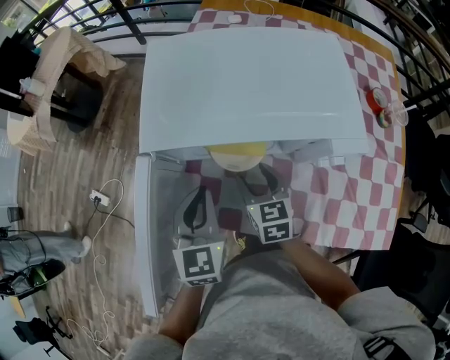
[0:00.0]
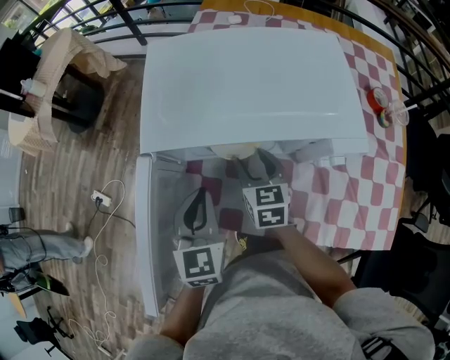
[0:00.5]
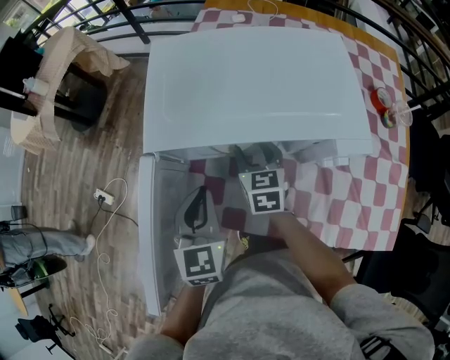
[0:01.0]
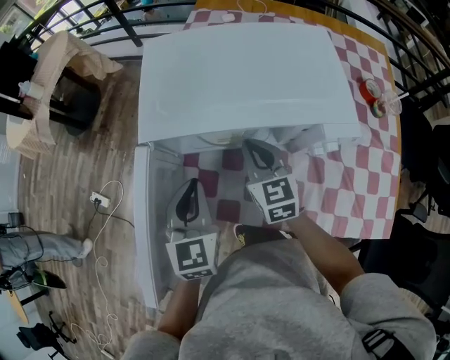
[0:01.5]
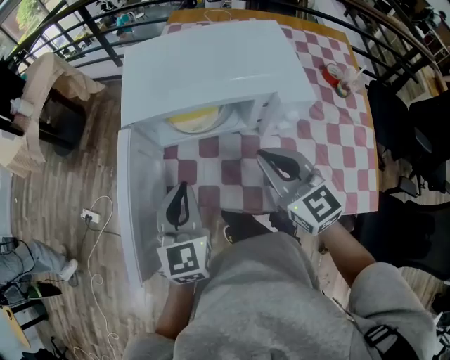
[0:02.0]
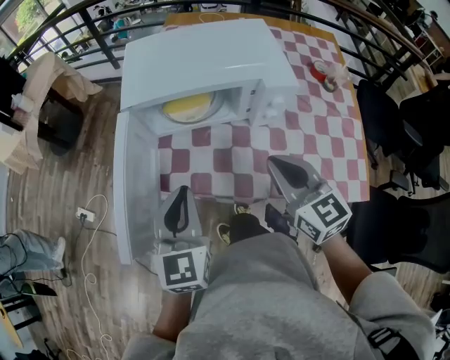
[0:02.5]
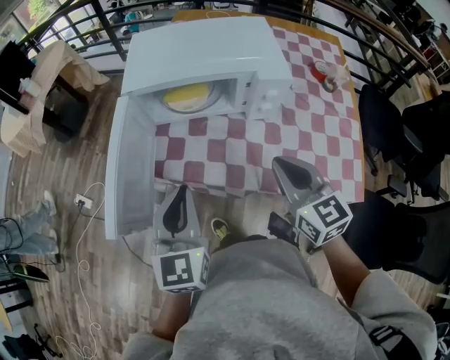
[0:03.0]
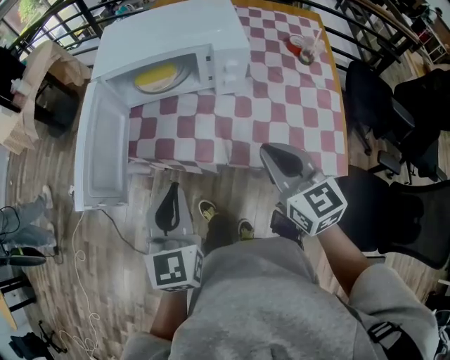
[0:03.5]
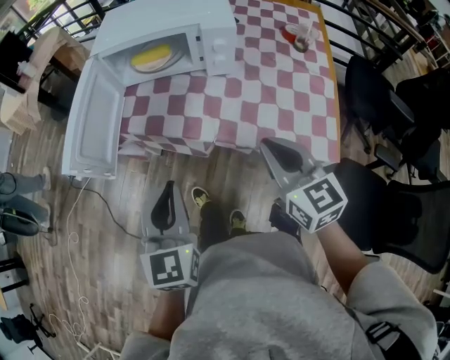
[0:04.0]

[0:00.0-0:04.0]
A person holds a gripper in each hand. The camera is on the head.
0:00.0 to 0:02.0: The left gripper goes approximately 10 cm backward. Meanwhile the right gripper moves upward and backward, roughly 20 cm, changes its angle by some 30 degrees, and closes up.
0:02.0 to 0:04.0: The left gripper goes roughly 30 cm backward. Meanwhile the right gripper moves backward and to the right, approximately 30 cm.

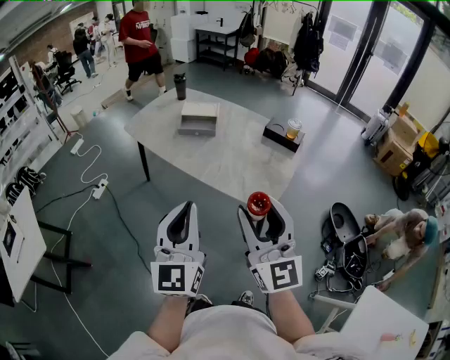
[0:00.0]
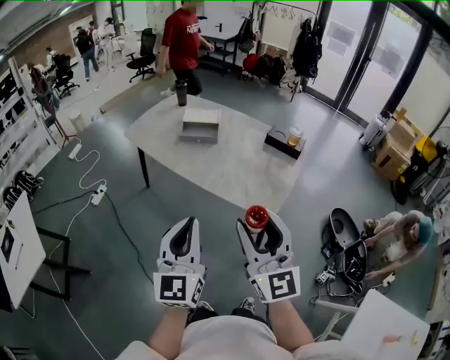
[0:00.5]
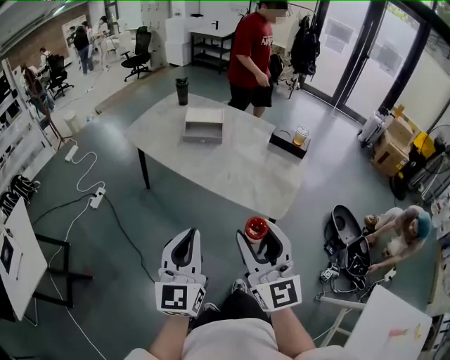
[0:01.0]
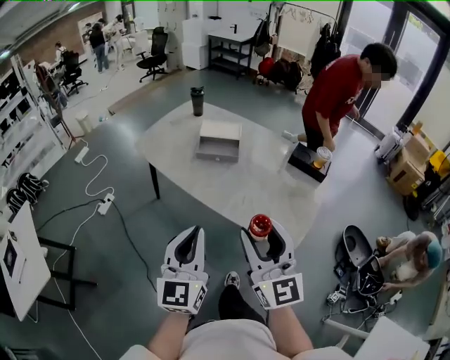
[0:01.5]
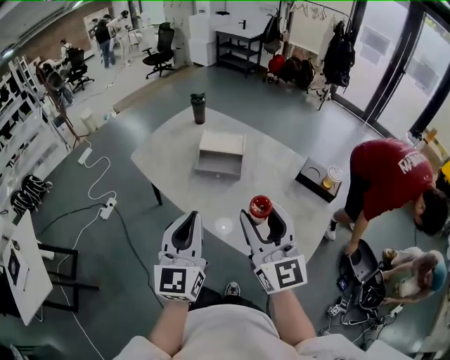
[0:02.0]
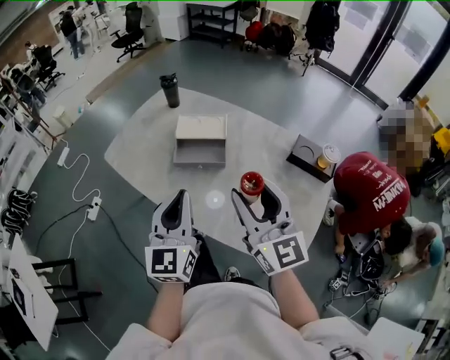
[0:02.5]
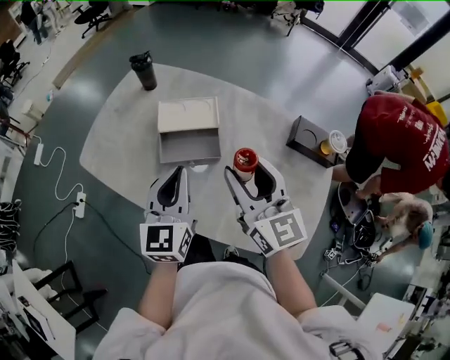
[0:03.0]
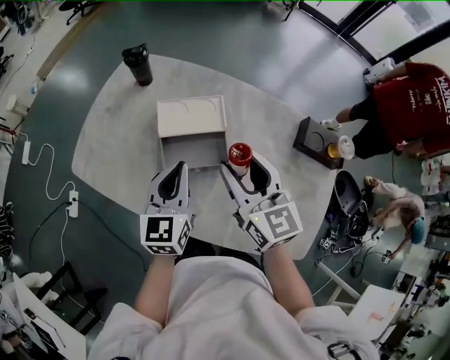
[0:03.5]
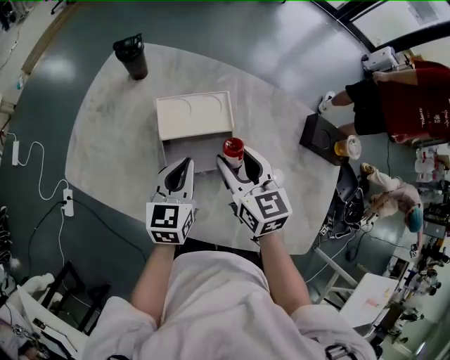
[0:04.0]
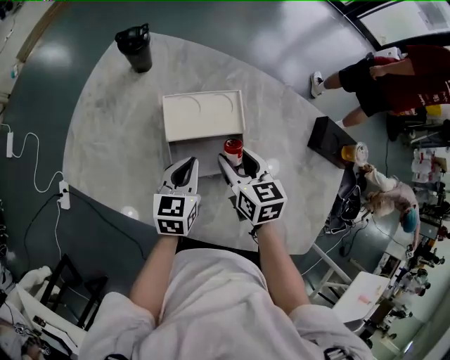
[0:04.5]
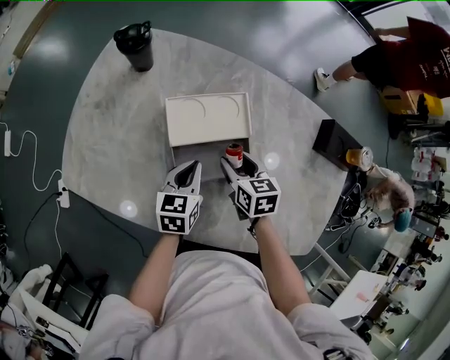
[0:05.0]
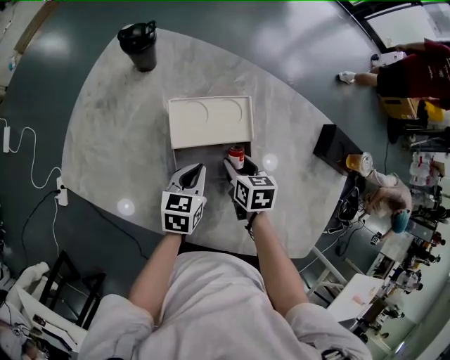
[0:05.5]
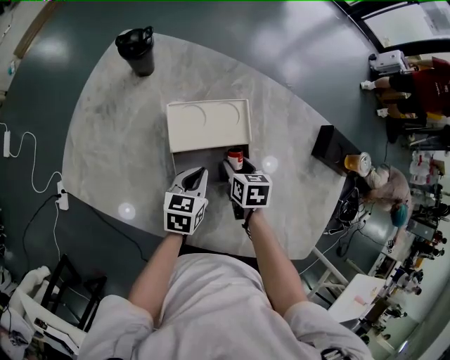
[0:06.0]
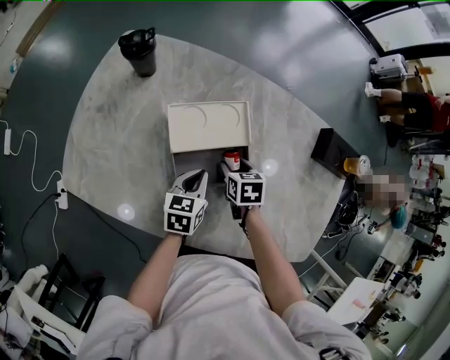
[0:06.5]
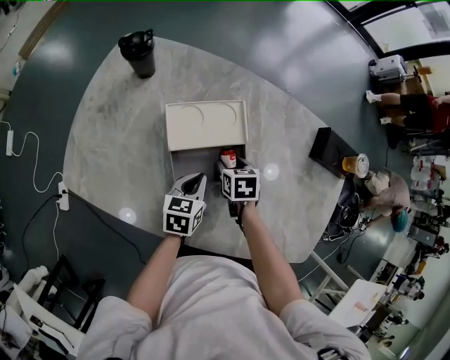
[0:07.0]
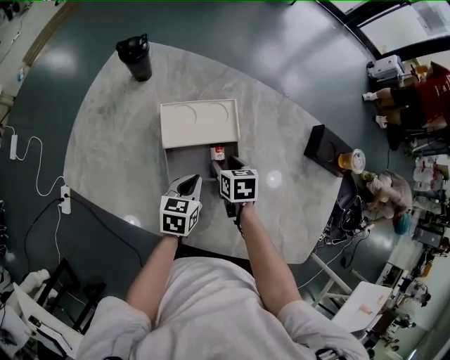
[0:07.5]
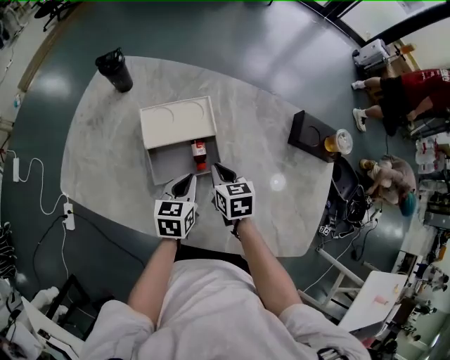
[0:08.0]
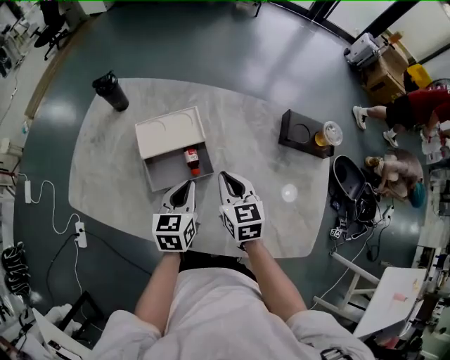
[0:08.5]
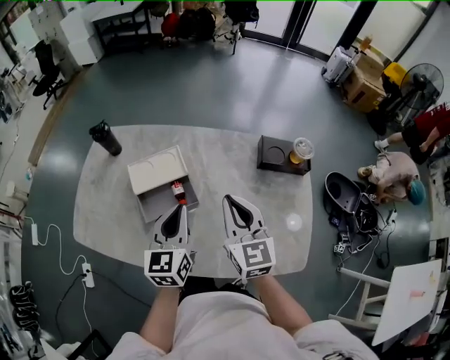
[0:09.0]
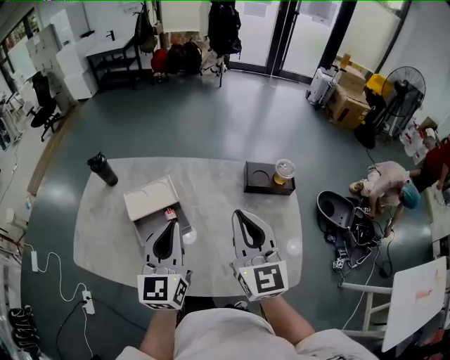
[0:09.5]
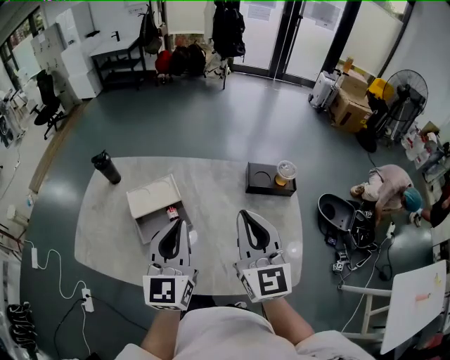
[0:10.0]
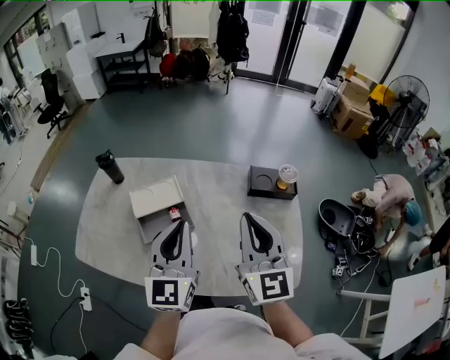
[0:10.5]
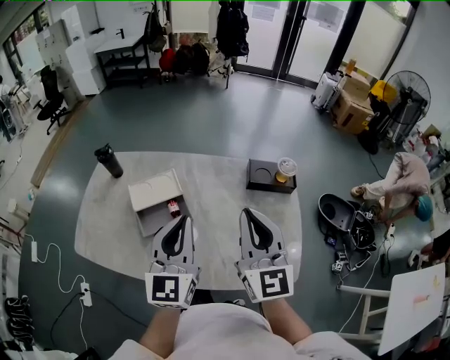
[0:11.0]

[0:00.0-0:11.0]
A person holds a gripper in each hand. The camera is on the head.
0:00.0 to 0:02.0: Both grippers travel together forward, approximately 35 cm.
0:02.0 to 0:03.5: Both grippers travel together forward and downward, about 40 cm. The left gripper turns by about 30 degrees; the right gripper swivels approximately 30 degrees.
0:03.5 to 0:05.5: The grippers both shift downward by approximately 25 cm. The right gripper angles its fingers downward, by approximately 40 degrees, while the left gripper changes its angle by approximately 30 degrees.
0:05.5 to 0:07.5: There are only small adjustments of the grippers.
0:07.5 to 0:09.0: Both grippers move upward and to the right, approximately 30 cm. The left gripper rotates about 30 degrees. Meanwhile the right gripper points its fingers roughly 50 degrees further upward, and closes.
0:09.0 to 0:11.0: Both grippers travel together upward, backward and to the right, approximately 15 cm.

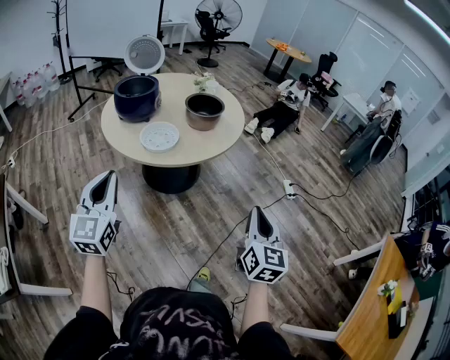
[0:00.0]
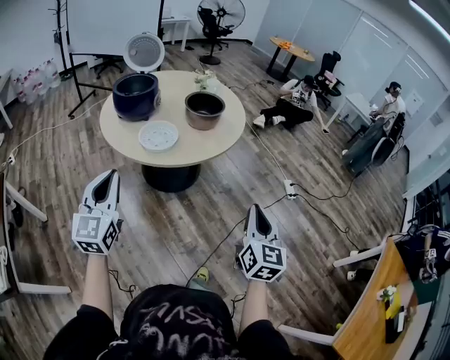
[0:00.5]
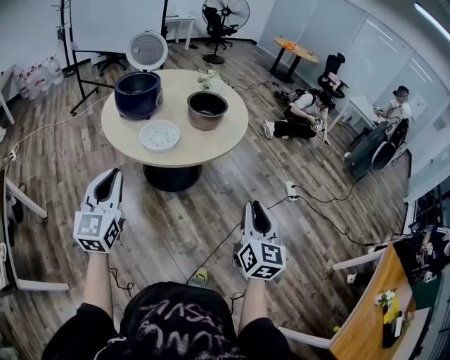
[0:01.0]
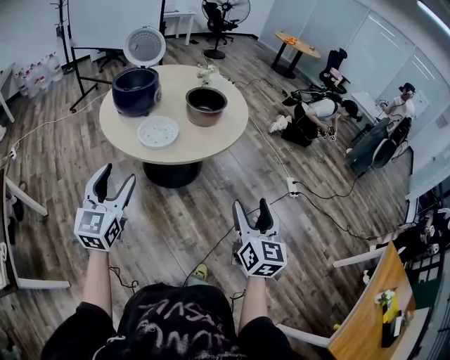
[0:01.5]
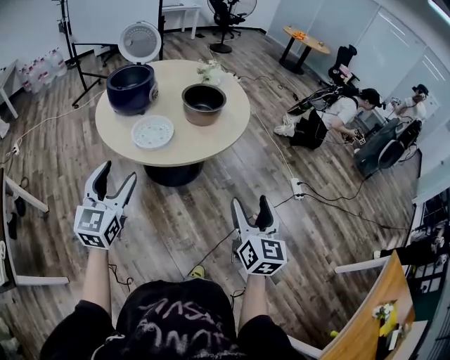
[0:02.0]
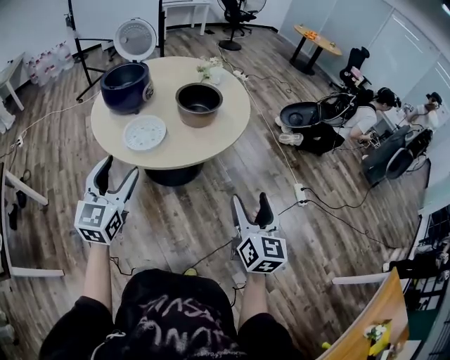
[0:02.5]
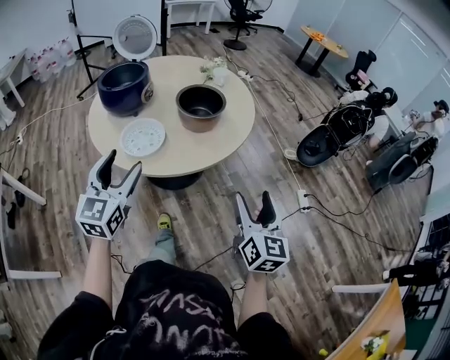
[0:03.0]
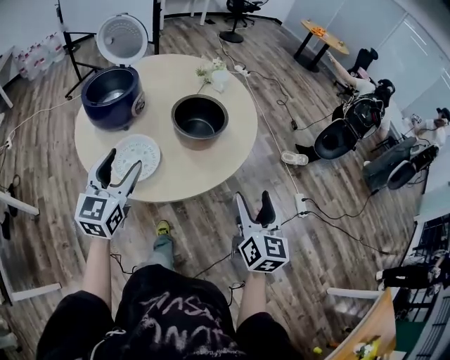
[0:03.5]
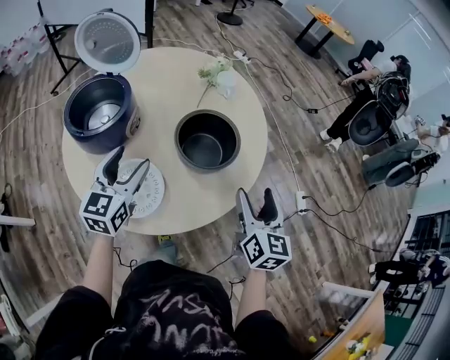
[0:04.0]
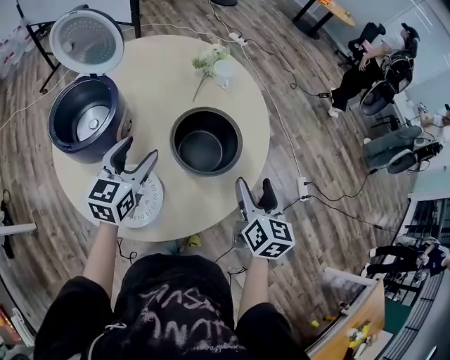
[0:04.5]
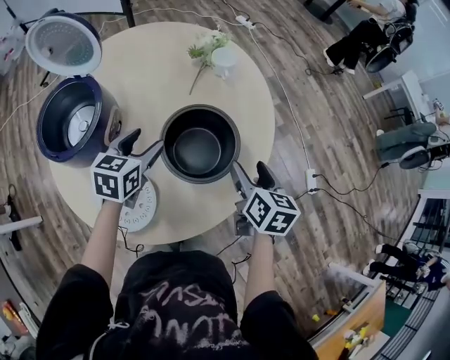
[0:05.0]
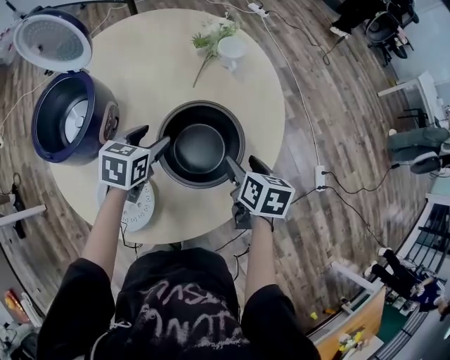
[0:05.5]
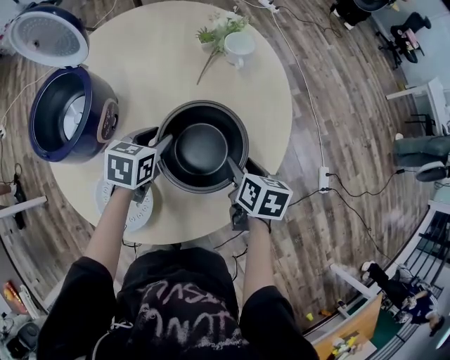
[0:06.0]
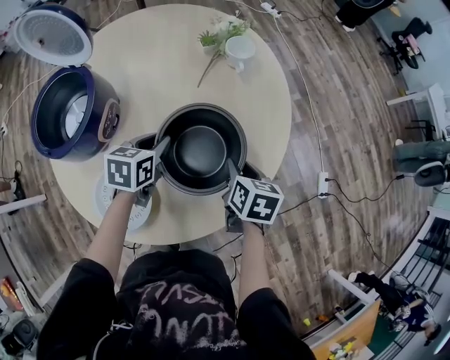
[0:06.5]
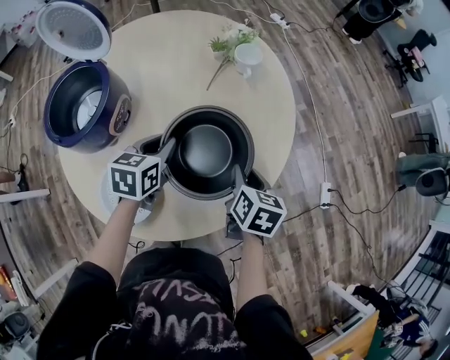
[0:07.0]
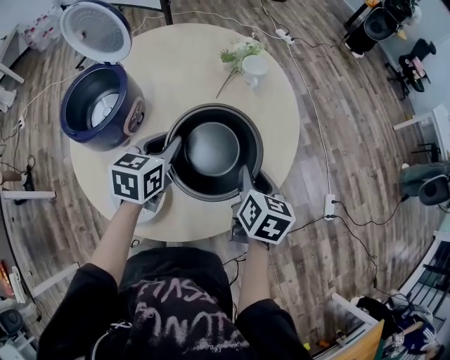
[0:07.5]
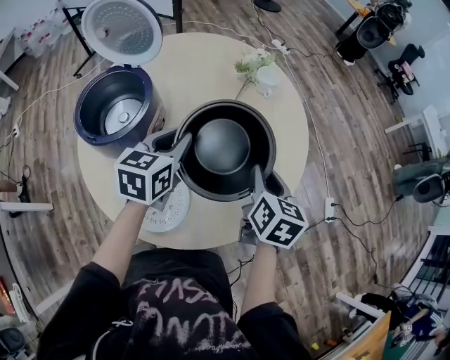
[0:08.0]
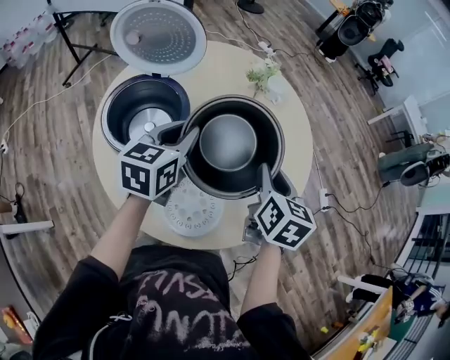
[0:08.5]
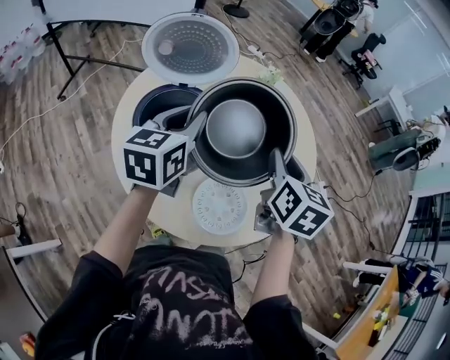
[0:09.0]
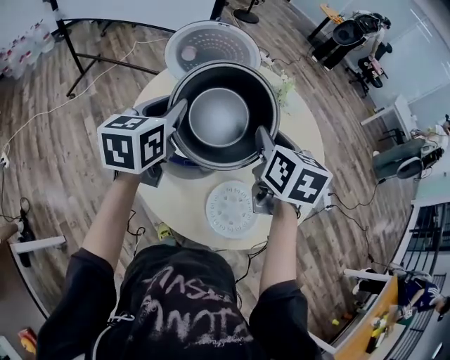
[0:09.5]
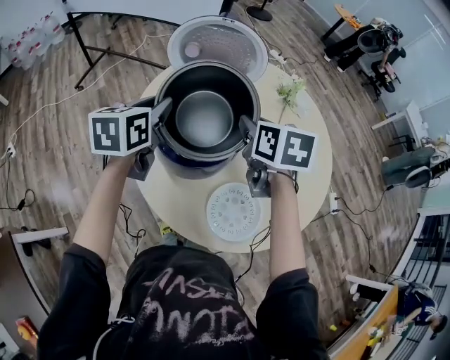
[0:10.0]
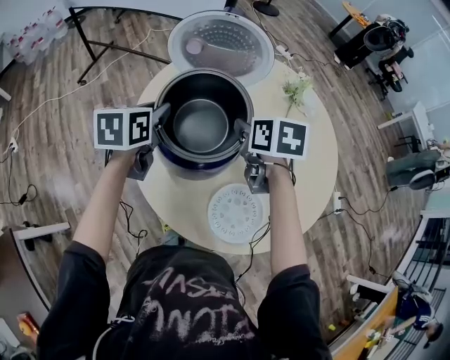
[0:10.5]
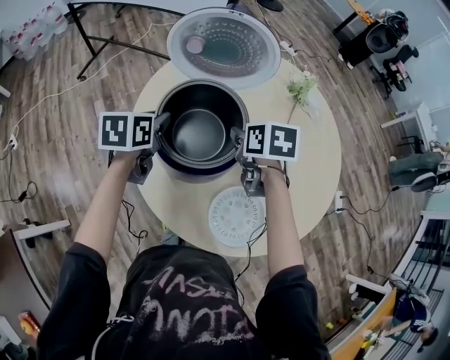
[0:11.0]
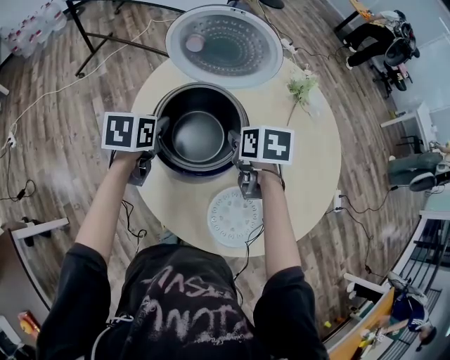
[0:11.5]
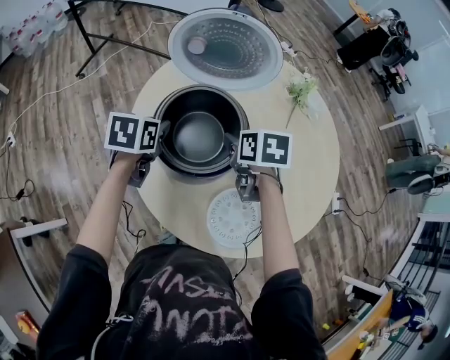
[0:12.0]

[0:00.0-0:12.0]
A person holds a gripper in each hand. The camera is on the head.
0:00.0 to 0:02.0: The left gripper is displaced forward and to the right by roughly 10 cm, and opens up. Meanwhile the right gripper moves forward, approximately 10 cm, and opens its fingers.
0:02.0 to 0:04.0: Both grippers travel together forward, approximately 40 cm.
0:04.0 to 0:06.0: The left gripper heads downward, forward and to the right, covering roughly 25 cm, tips its fingers downward by some 30 degrees, and closes its fingers; the right gripper goes about 25 cm downward and forward, and tips its fingers downward by some 30 degrees.
0:06.0 to 0:08.0: Both grippers move upward and to the left, roughly 15 cm. The left gripper turns by approximately 20 degrees; the right gripper turns by roughly 20 degrees, and closes up.
0:08.0 to 0:10.0: Both grippers travel together to the left, approximately 35 cm.
0:10.0 to 0:12.0: Both grippers move downward, some 10 cm. The left gripper swivels about 20 degrees.
